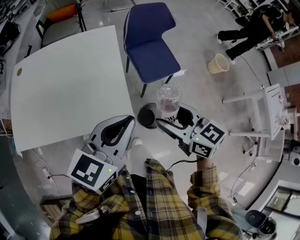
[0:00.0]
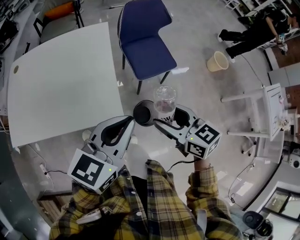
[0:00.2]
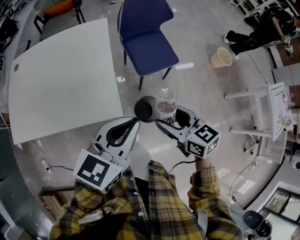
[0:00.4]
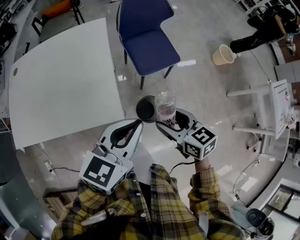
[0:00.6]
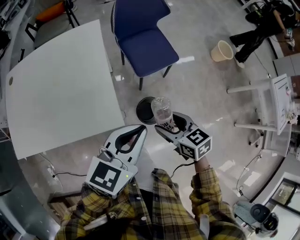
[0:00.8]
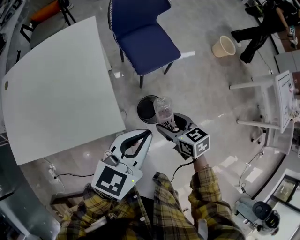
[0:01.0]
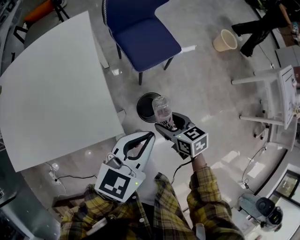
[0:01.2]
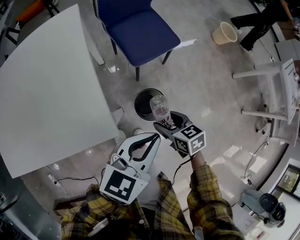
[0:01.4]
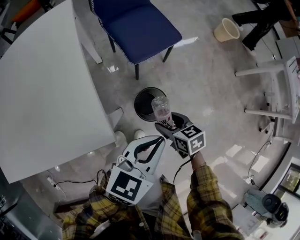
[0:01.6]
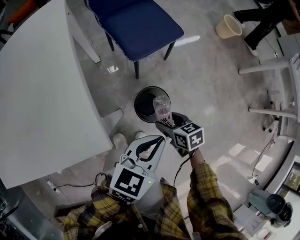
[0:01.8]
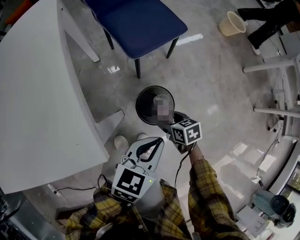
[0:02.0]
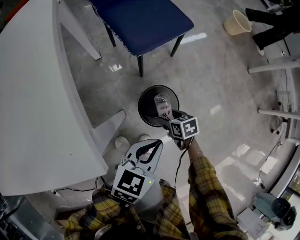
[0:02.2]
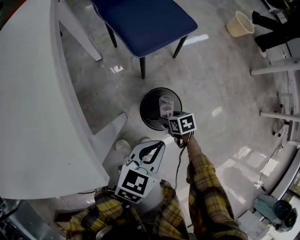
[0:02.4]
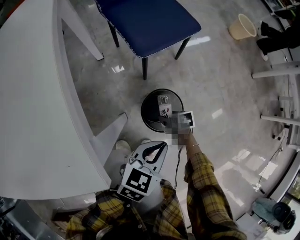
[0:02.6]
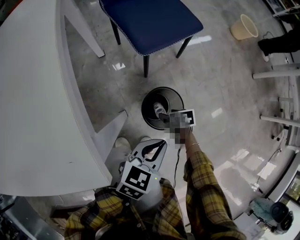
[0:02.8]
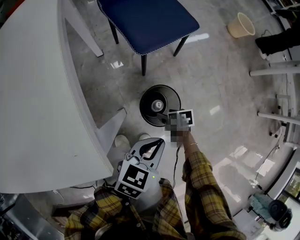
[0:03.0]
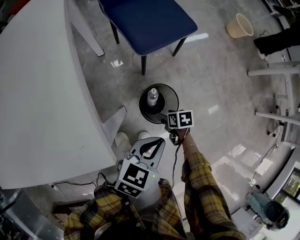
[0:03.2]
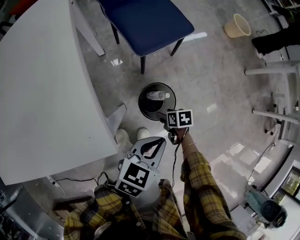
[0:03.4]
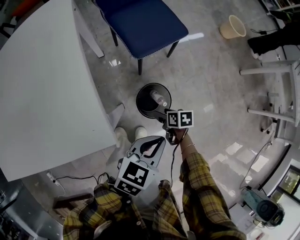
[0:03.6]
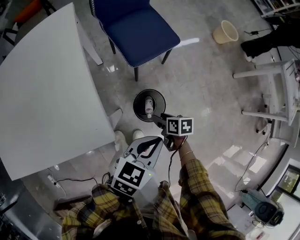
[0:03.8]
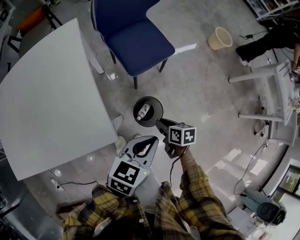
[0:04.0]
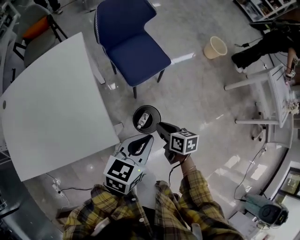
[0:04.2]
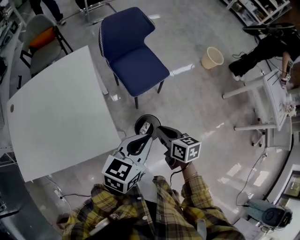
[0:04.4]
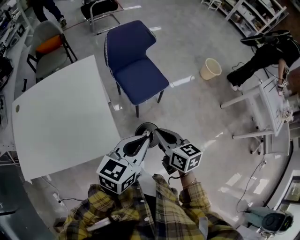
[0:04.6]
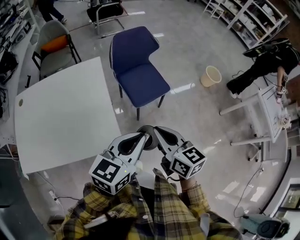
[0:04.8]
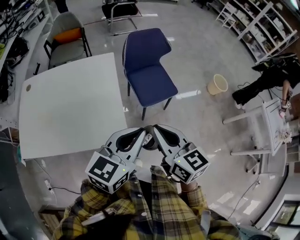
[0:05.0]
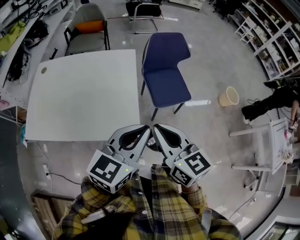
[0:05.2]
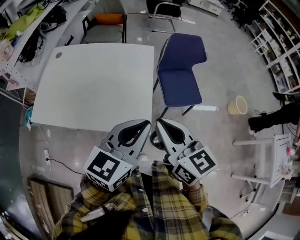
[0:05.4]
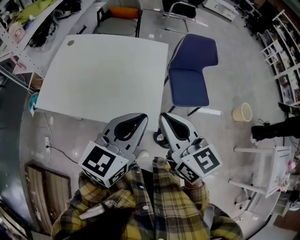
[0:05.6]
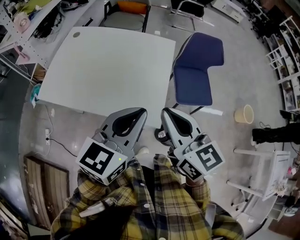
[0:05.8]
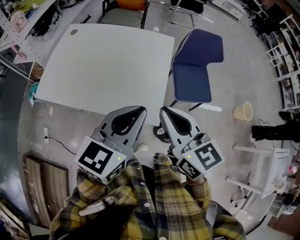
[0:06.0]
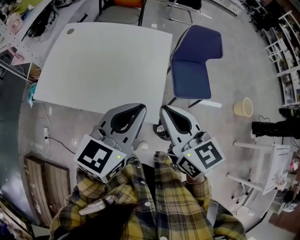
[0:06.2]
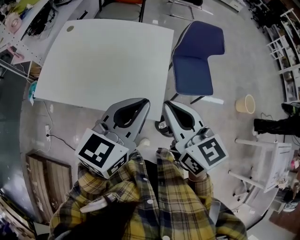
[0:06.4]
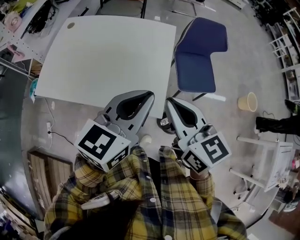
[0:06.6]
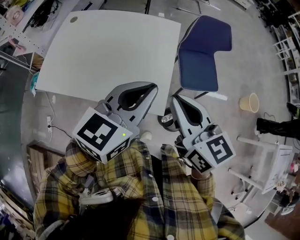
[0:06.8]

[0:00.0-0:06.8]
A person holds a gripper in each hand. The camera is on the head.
0:00.0 to 0:01.4: The right gripper moves downward, about 30 cm, and turns by approximately 30 degrees; the left gripper moves downward and to the right, some 25 cm.
0:01.4 to 0:02.8: The grippers both shift downward by approximately 35 cm. The right gripper turns by approximately 30 degrees.
0:02.8 to 0:04.0: The grippers both shift upward by some 30 cm. The right gripper closes up.
0:04.0 to 0:05.4: The right gripper moves upward and to the left, some 50 cm, and angles its fingers upward, by some 40 degrees. Meanwhile the left gripper is displaced upward and to the left by approximately 35 cm, and turns by approximately 40 degrees.
0:05.4 to 0:06.8: The left gripper moves to the left, some 5 cm.

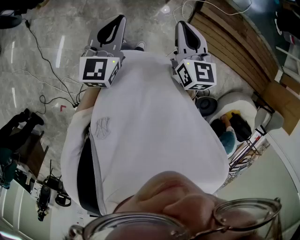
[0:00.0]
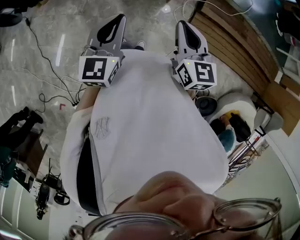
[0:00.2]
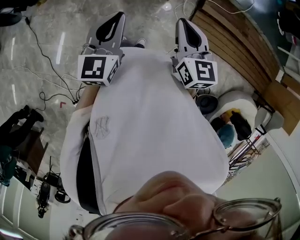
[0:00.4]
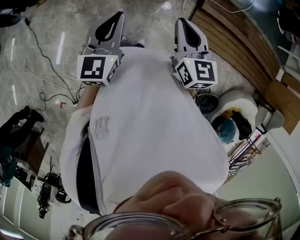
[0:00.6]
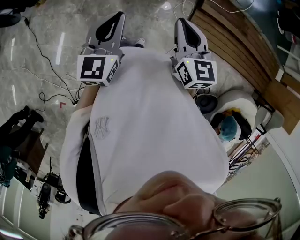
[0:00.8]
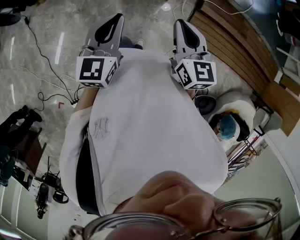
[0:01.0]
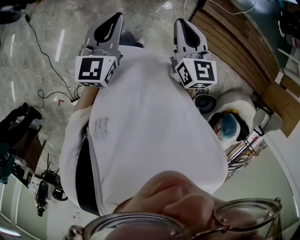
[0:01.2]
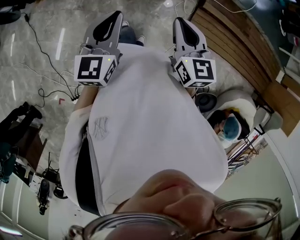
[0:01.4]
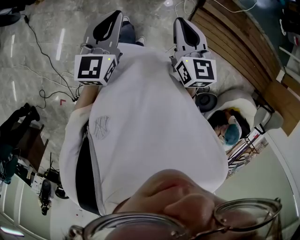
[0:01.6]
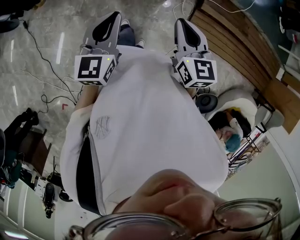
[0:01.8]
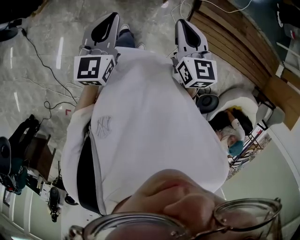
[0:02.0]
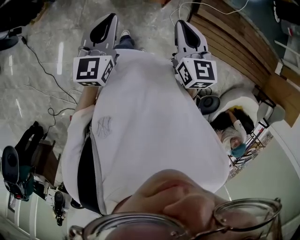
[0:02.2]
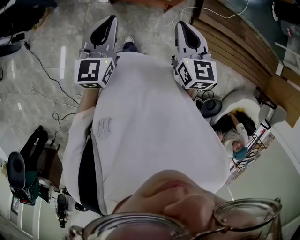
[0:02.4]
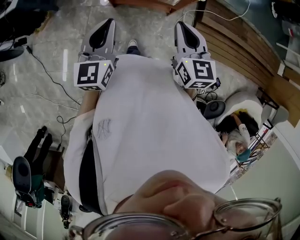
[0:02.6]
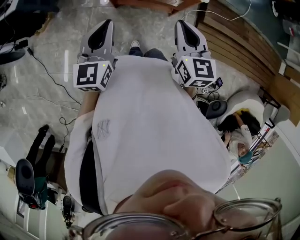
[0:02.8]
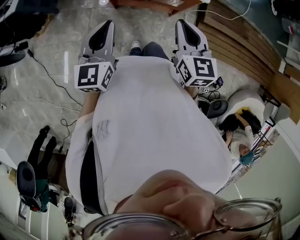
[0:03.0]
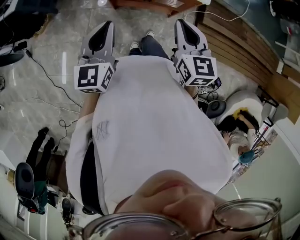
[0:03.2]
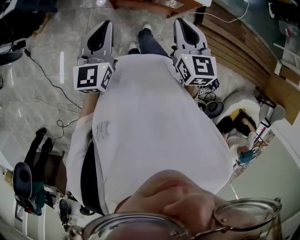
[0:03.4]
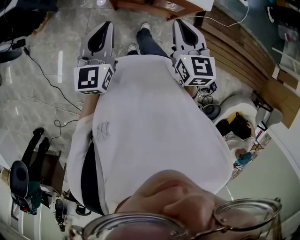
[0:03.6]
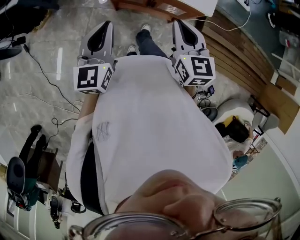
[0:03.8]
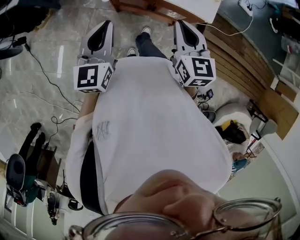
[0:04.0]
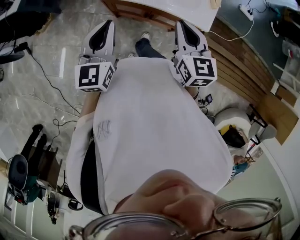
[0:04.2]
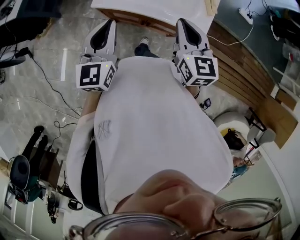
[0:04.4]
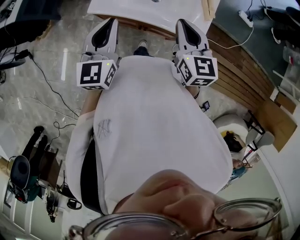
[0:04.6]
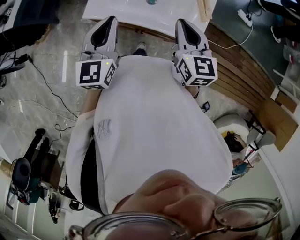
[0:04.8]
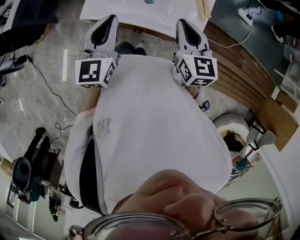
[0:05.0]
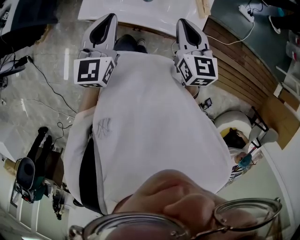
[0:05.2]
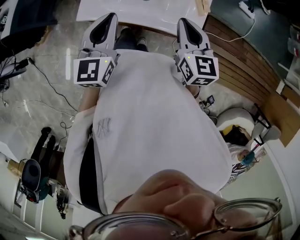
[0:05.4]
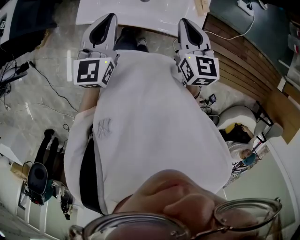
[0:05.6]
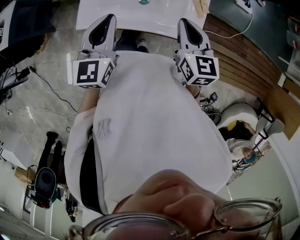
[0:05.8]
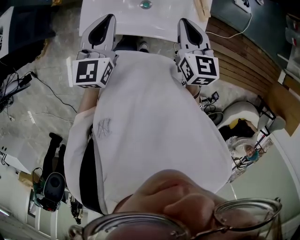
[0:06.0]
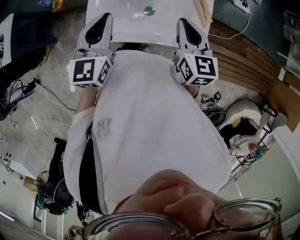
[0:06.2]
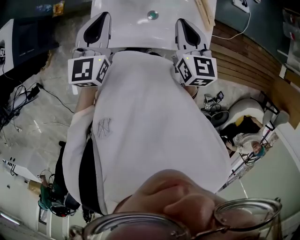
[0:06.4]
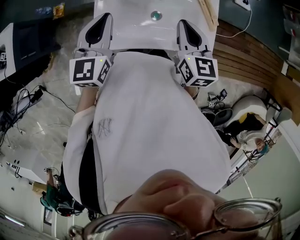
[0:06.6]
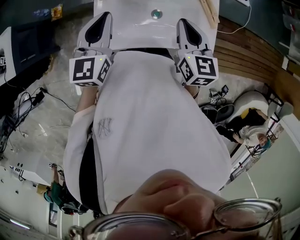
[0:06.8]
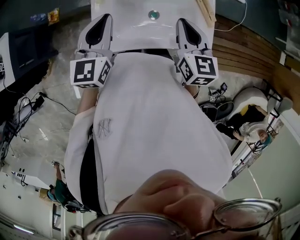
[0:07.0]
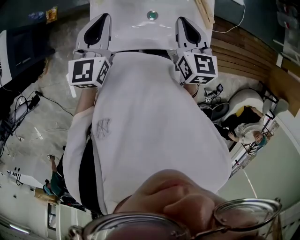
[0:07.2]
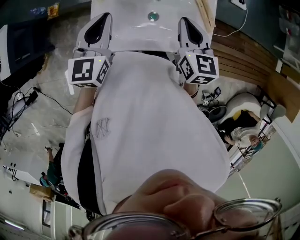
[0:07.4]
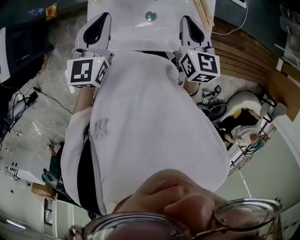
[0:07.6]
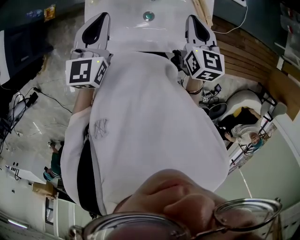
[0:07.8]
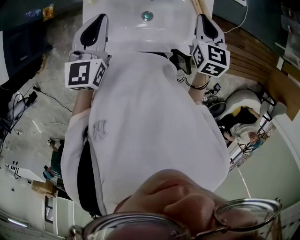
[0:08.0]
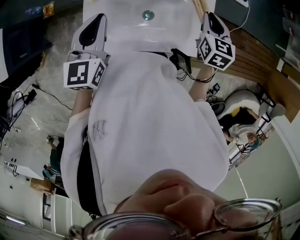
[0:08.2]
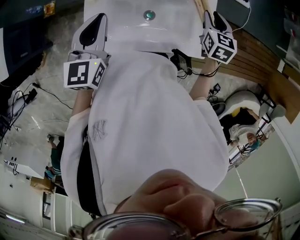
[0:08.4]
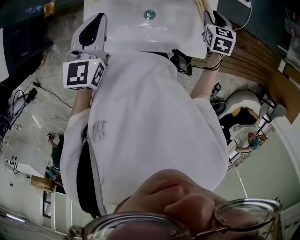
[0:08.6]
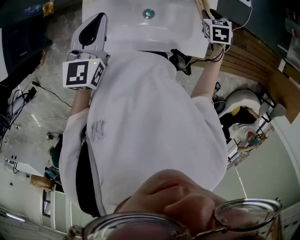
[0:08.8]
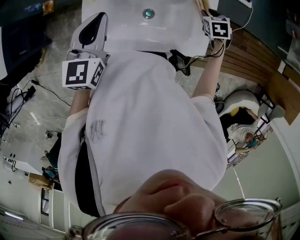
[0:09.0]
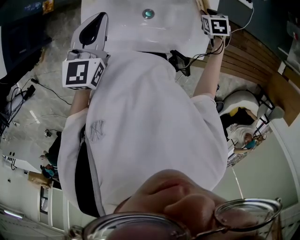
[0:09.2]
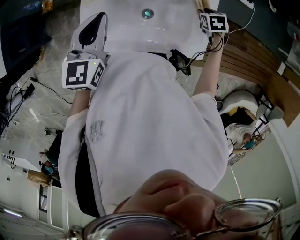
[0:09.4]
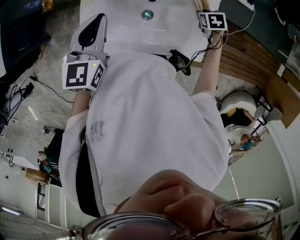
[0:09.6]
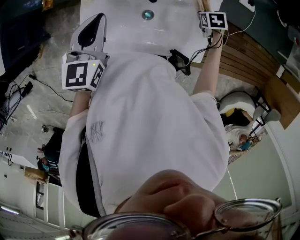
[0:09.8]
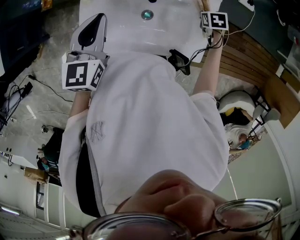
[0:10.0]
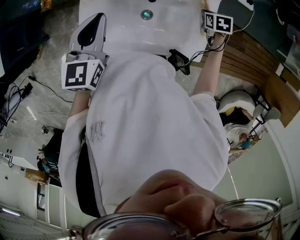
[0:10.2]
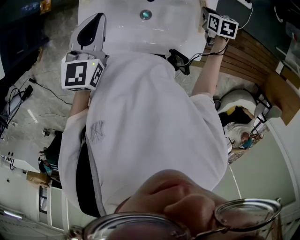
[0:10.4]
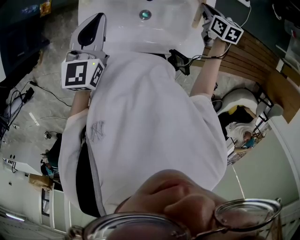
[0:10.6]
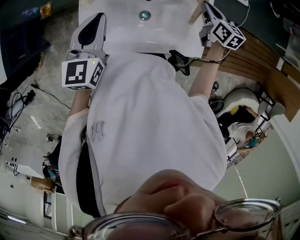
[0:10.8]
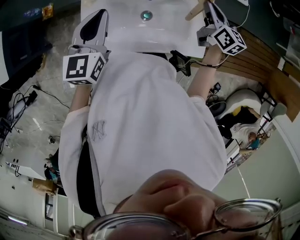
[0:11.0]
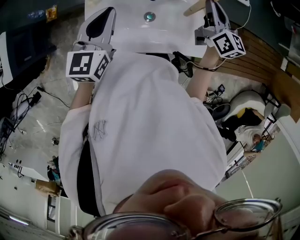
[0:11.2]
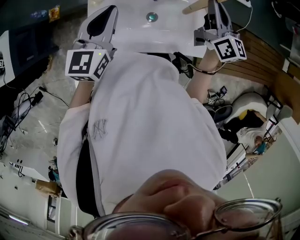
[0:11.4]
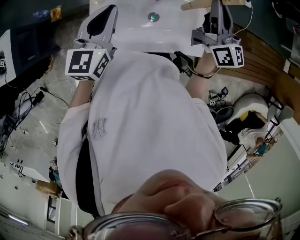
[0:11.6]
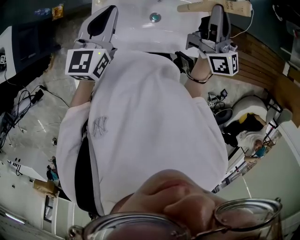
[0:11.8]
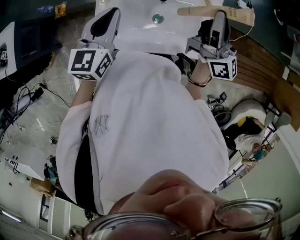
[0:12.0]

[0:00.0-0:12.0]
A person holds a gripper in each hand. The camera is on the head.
0:00.0 to 0:01.6: The grippers make only small movements.
0:01.6 to 0:03.0: The grippers both shift forward and to the left by roughly 25 cm.
0:03.0 to 0:04.4: Both grippers move forward, roughly 20 cm.
0:04.4 to 0:06.0: Both grippers move forward, roughly 10 cm.
0:06.0 to 0:07.6: The left gripper is displaced forward and to the left by some 10 cm. Meanwhile the right gripper moves forward, some 10 cm.
0:07.6 to 0:09.0: The right gripper travels downward, to the right and forward by some 25 cm, tilts its fingers approximately 40 degrees downward, and opens.
0:09.0 to 0:10.4: The right gripper closes.
0:10.4 to 0:12.0: The right gripper is displaced upward by some 30 cm, and points its fingers some 80 degrees further upward.

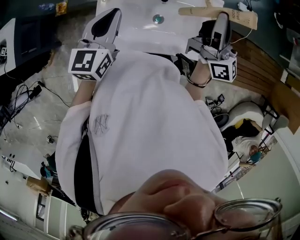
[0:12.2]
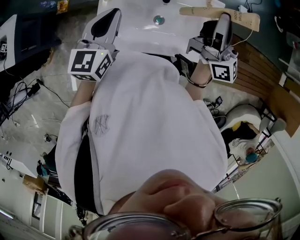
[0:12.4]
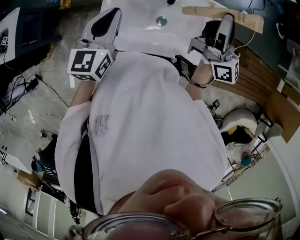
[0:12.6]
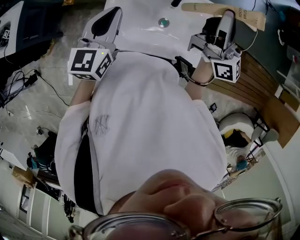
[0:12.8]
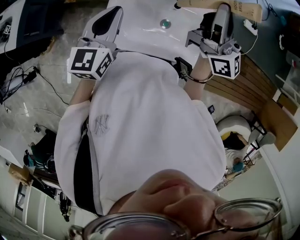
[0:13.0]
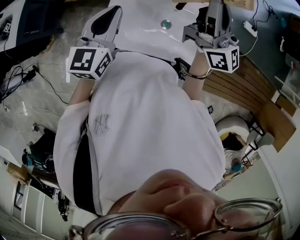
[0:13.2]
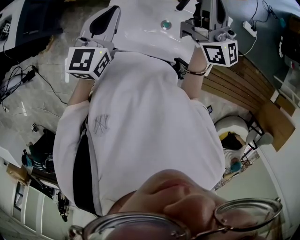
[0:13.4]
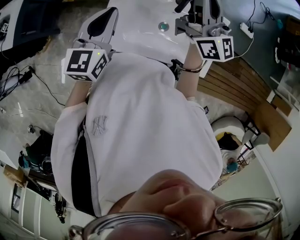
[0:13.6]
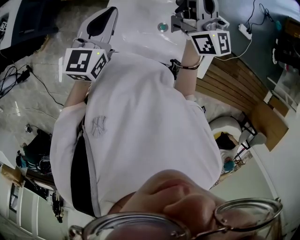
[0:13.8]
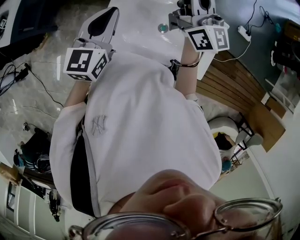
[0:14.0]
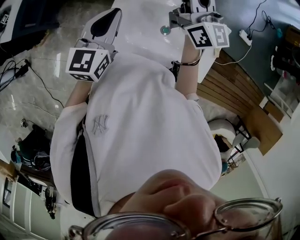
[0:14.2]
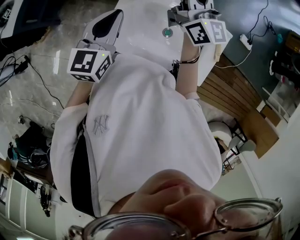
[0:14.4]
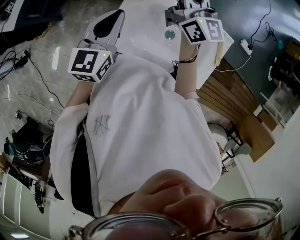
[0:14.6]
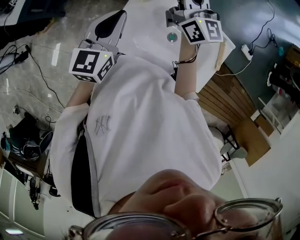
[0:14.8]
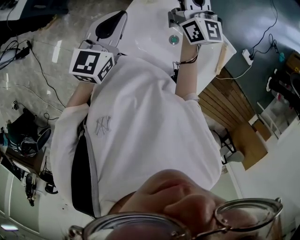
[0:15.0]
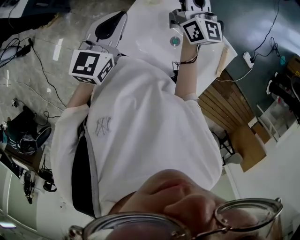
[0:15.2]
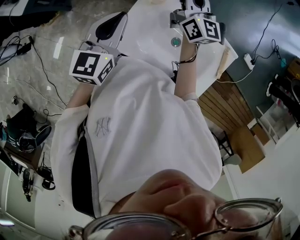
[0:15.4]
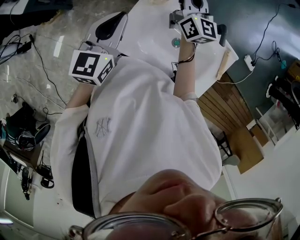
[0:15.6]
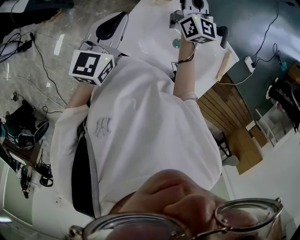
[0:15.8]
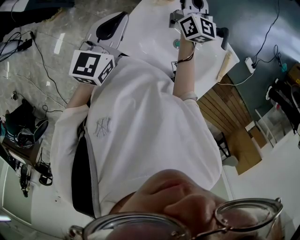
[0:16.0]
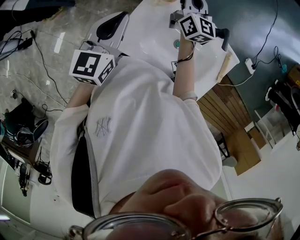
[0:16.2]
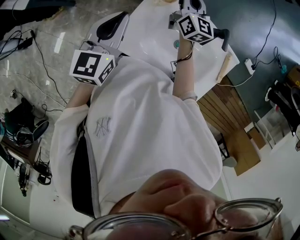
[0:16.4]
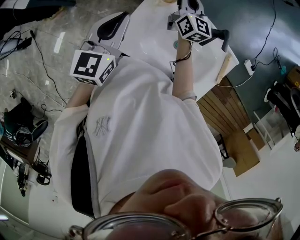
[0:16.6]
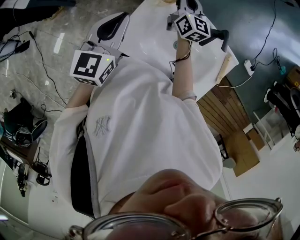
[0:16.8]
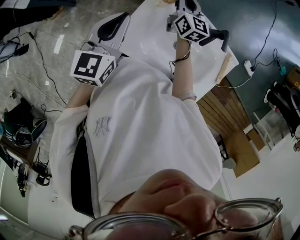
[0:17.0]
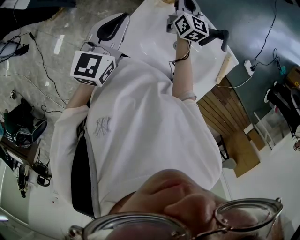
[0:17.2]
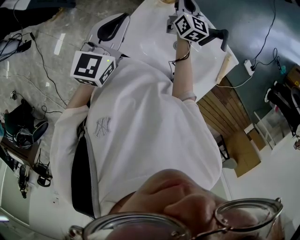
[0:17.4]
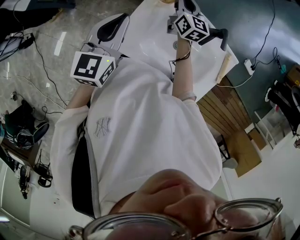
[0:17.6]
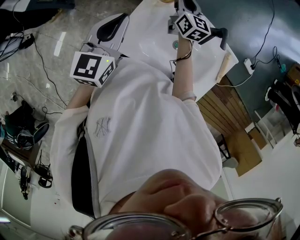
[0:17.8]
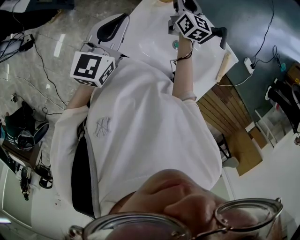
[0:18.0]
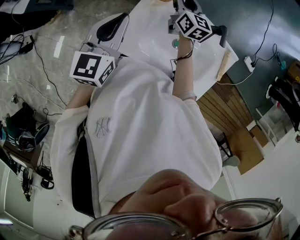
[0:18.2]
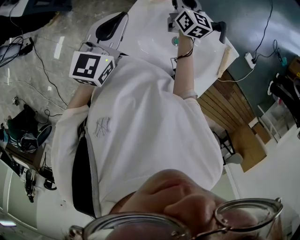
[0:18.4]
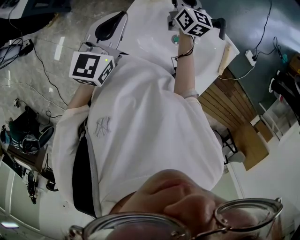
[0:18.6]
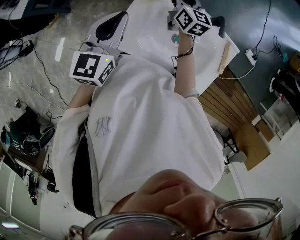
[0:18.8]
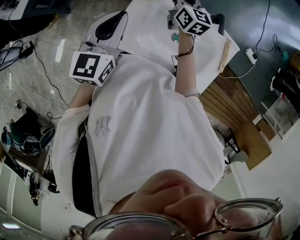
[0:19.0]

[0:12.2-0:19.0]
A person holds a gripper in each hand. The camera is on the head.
0:12.2 to 0:13.6: The left gripper heads to the left, covering about 5 cm. The right gripper heads to the left and forward, covering roughly 15 cm.
0:13.6 to 0:15.0: The right gripper goes roughly 20 cm to the left, forward and downward; the left gripper travels to the left by about 5 cm.
0:15.0 to 0:16.2: The right gripper shifts some 10 cm downward.
0:16.2 to 0:17.6: The right gripper travels downward by about 5 cm.
0:17.6 to 0:19.0: There are only small adjustments of the grippers.
